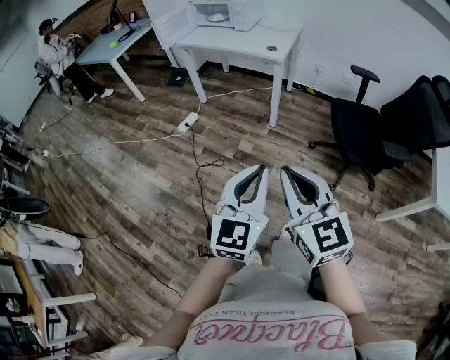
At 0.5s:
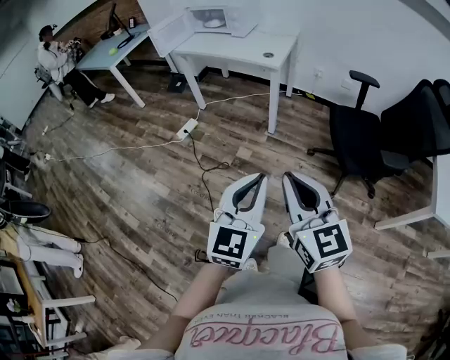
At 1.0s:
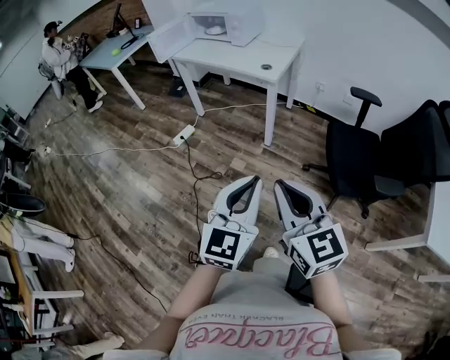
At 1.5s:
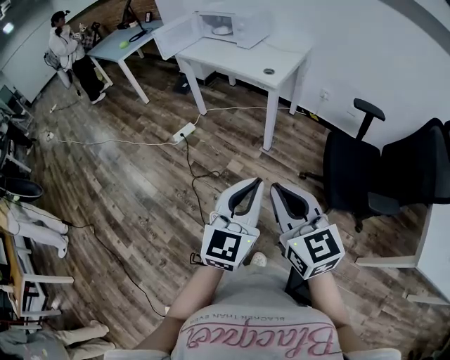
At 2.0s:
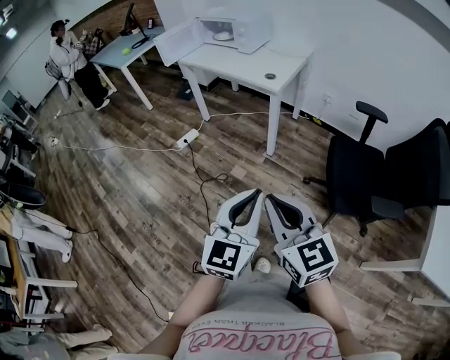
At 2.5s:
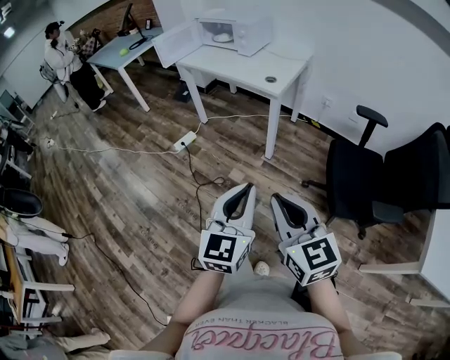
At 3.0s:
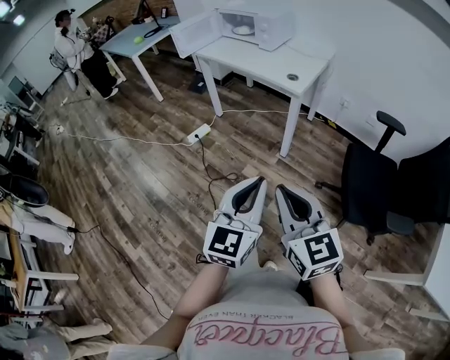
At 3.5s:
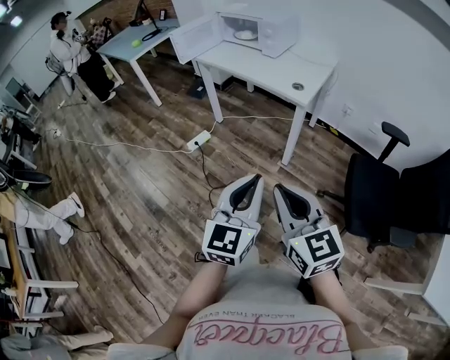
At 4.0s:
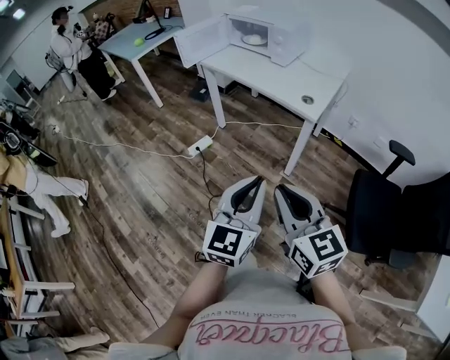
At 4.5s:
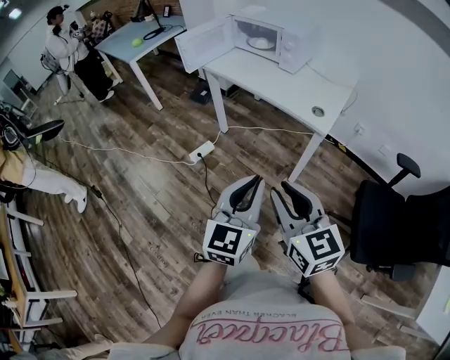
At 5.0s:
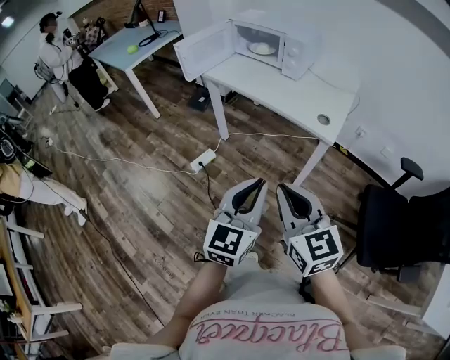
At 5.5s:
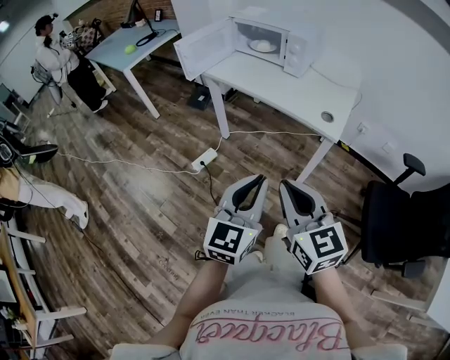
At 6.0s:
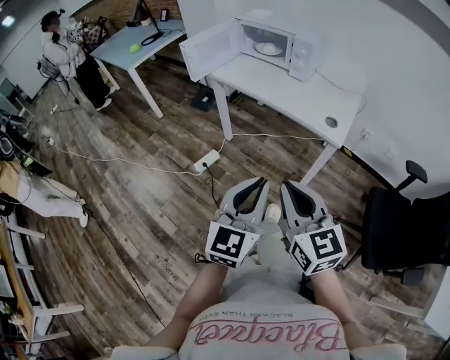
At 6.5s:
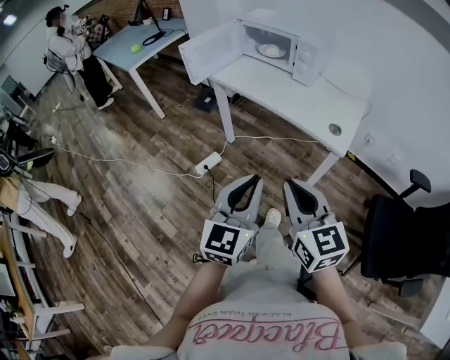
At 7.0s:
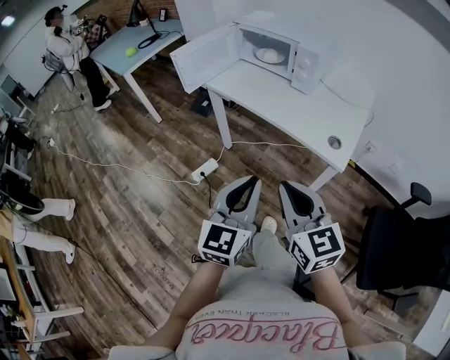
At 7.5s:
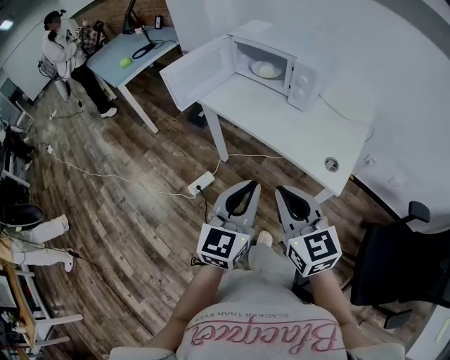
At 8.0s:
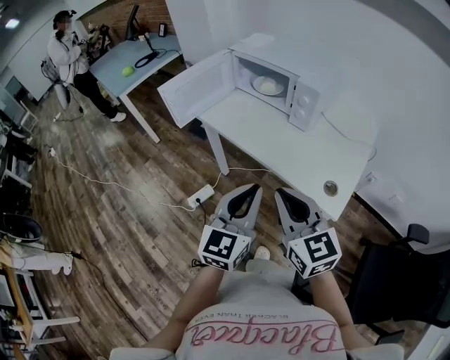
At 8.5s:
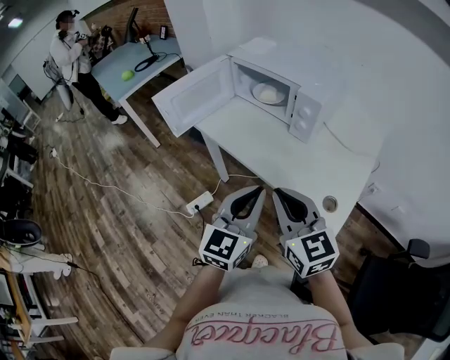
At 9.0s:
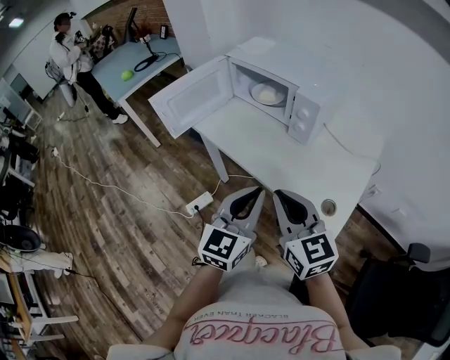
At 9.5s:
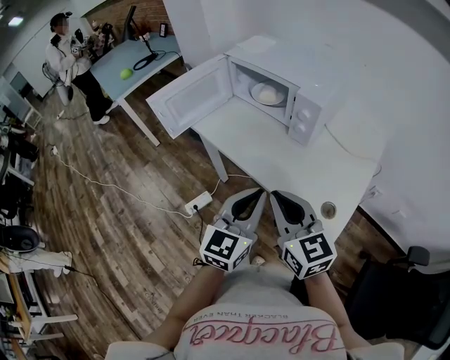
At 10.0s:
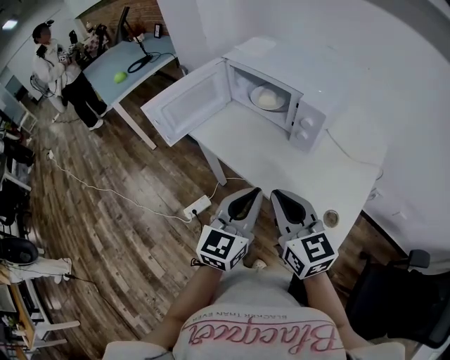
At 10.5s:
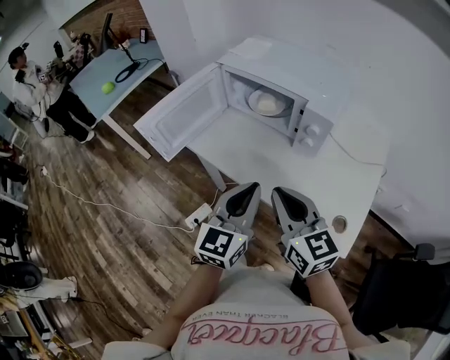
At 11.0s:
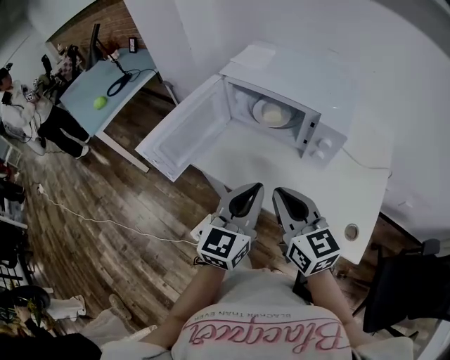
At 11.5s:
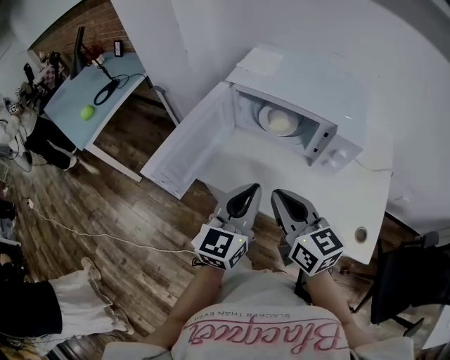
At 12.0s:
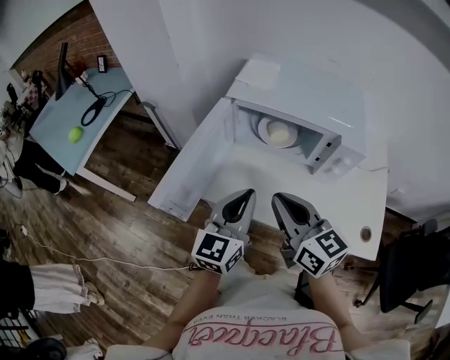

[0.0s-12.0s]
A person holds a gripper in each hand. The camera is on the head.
0.0s to 2.0s: Both grippers travel together to the right and forward, approximately 15 cm.
2.0s to 4.0s: The two grippers go about 25 cm forward and to the left.
4.0s to 6.0s: The two grippers go about 20 cm forward and to the left. The right gripper opens, then closes again.
6.0s to 8.0s: Both grippers move forward, some 25 cm.
8.0s to 10.0s: Both grippers move forward, approximately 15 cm.
10.0s to 12.0s: The two grippers go about 25 cm forward and to the left.

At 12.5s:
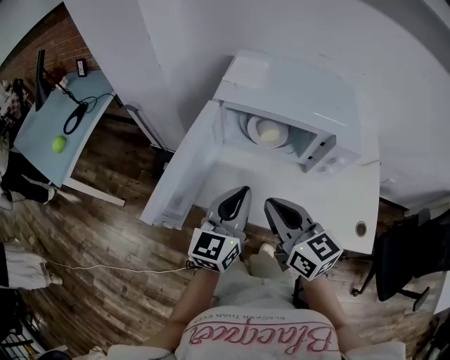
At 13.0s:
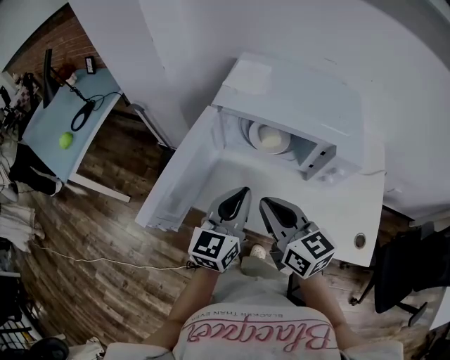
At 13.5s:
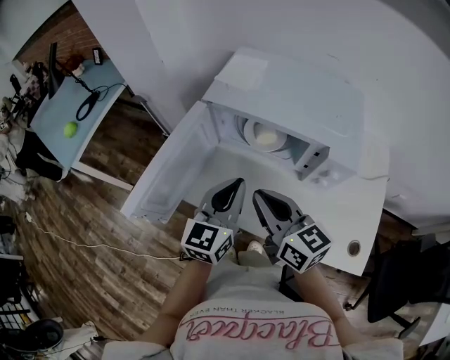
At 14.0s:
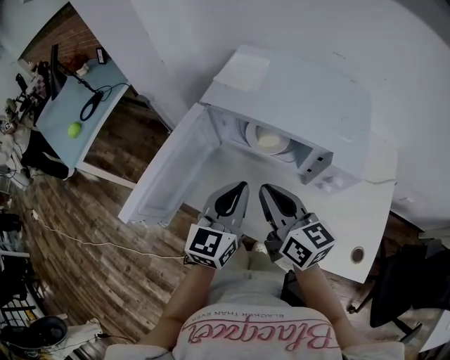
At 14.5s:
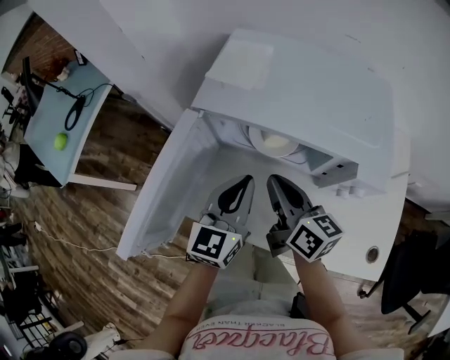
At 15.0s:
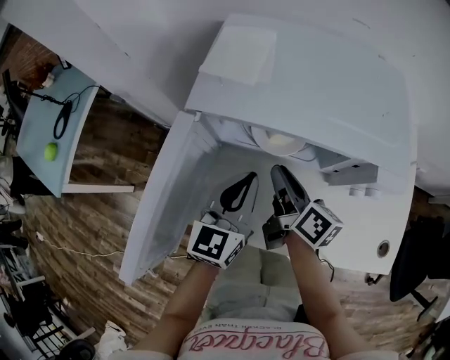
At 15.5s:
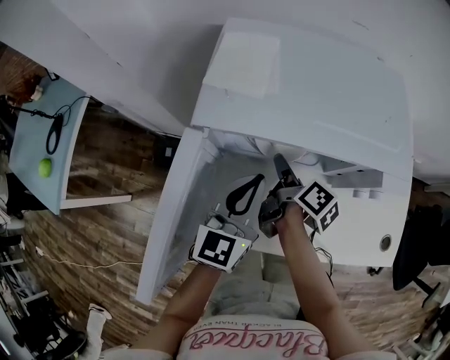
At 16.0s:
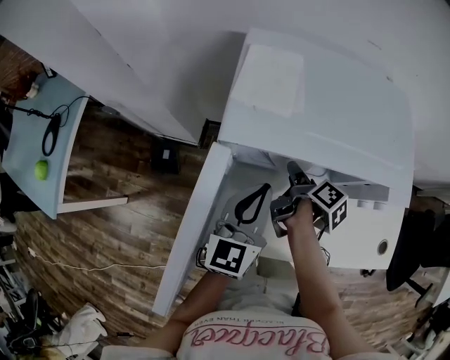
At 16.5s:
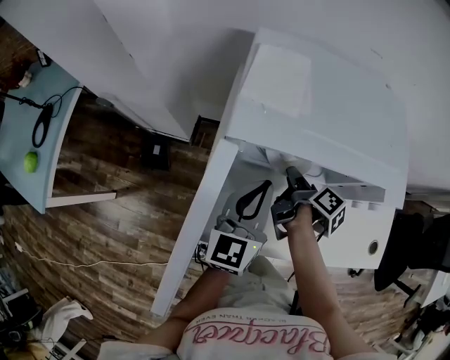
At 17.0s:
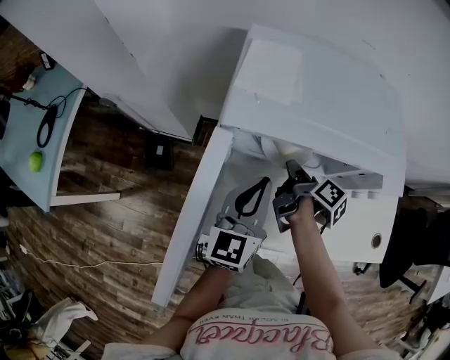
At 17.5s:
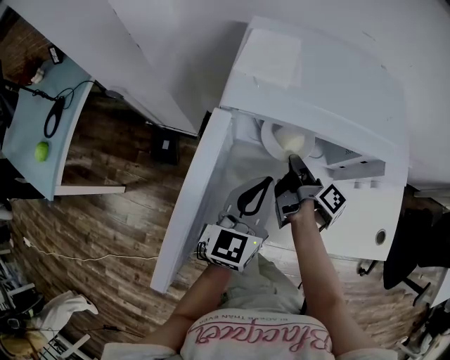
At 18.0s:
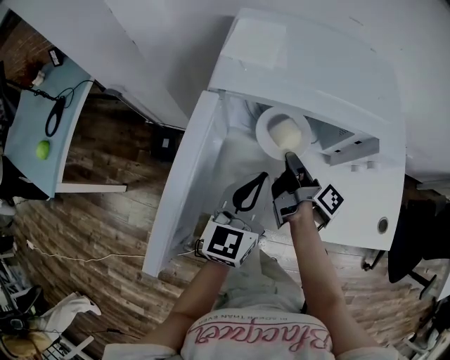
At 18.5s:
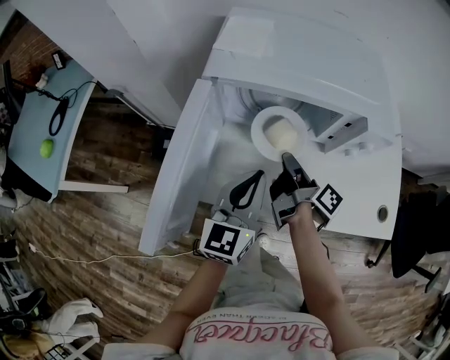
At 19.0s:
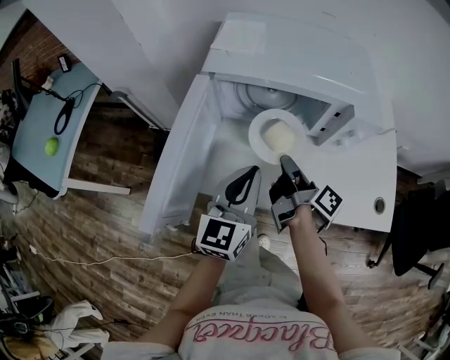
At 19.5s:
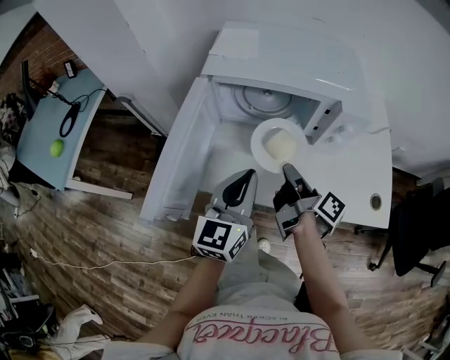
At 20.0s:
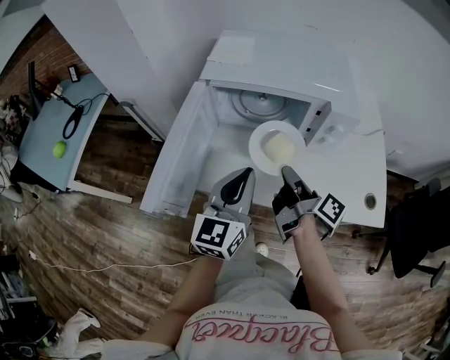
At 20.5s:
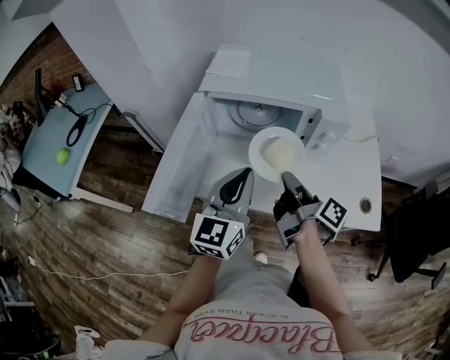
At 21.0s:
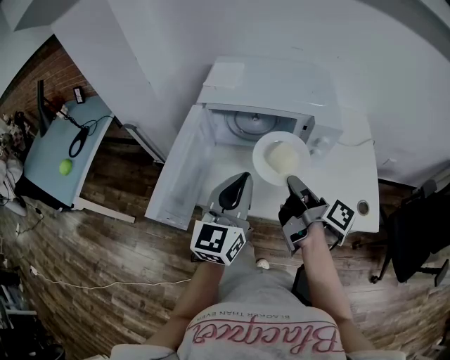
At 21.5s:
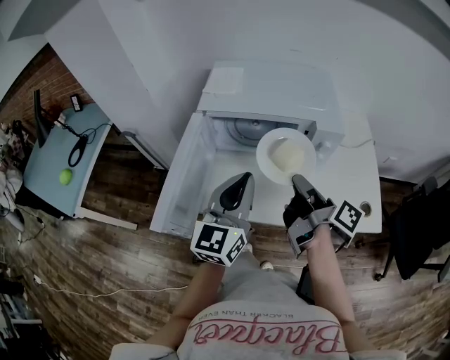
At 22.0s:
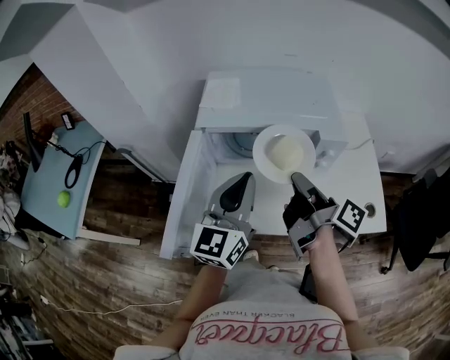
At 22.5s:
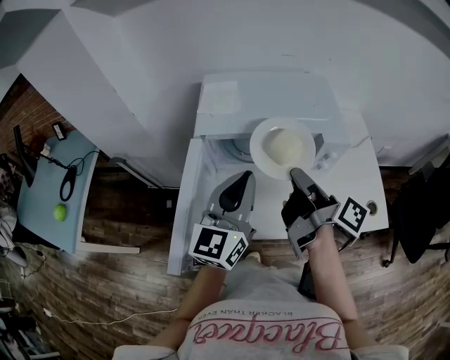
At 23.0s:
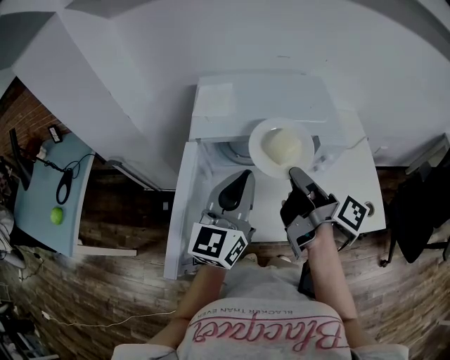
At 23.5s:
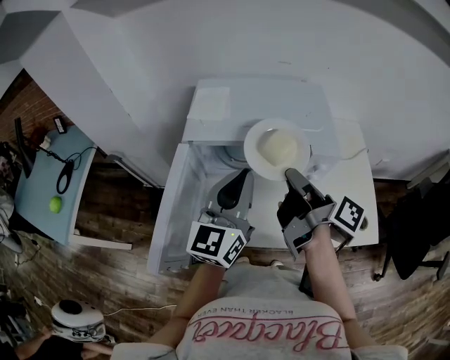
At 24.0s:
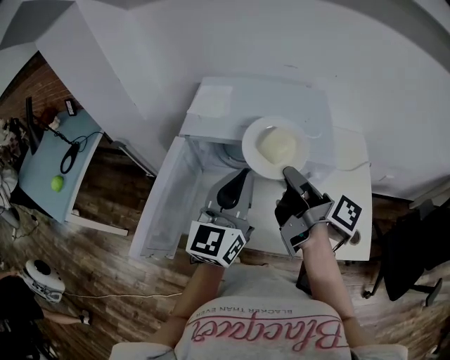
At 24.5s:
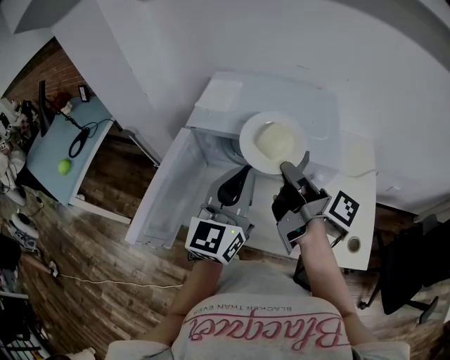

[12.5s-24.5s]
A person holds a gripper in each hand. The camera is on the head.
12.5s to 14.5s: The left gripper travels forward by roughly 10 cm. The right gripper is displaced forward, downward and to the right by about 15 cm, and turns by about 20 degrees.
14.5s to 16.5s: The left gripper ends up some 5 cm from where it was. Meanwhile the right gripper is displaced downward and forward by some 15 cm, swivels some 60 degrees, and opens up.
16.5s to 18.5s: Both grippers move backward, about 10 cm. The right gripper changes its angle by some 30 degrees, and closes its fingers.
18.5s to 20.5s: The left gripper shifts approximately 10 cm upward and backward. Meanwhile the right gripper goes about 15 cm backward, upward and to the right.
20.5s to 22.5s: The left gripper shifts roughly 10 cm forward and upward; the right gripper moves upward and forward, about 10 cm.
22.5s to 24.5s: The right gripper shifts by roughly 5 cm. The left gripper travels to the right by some 5 cm.

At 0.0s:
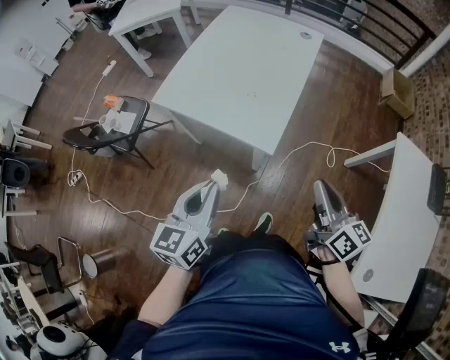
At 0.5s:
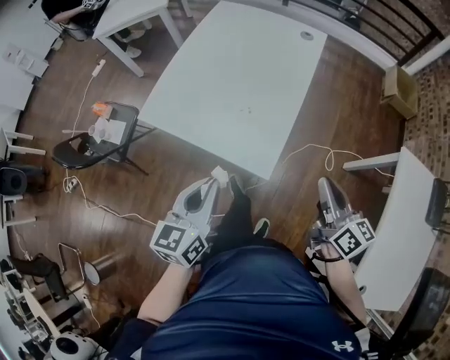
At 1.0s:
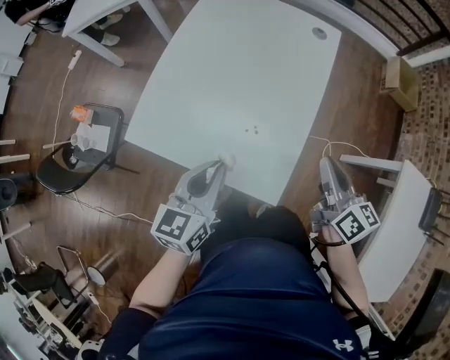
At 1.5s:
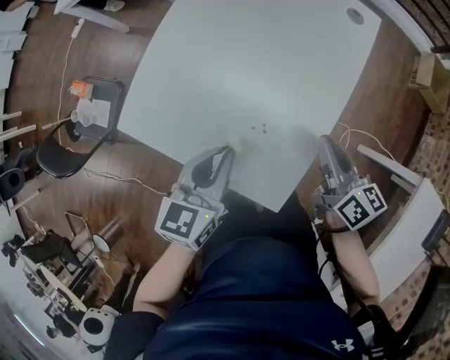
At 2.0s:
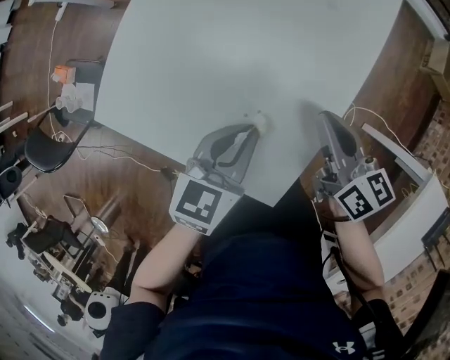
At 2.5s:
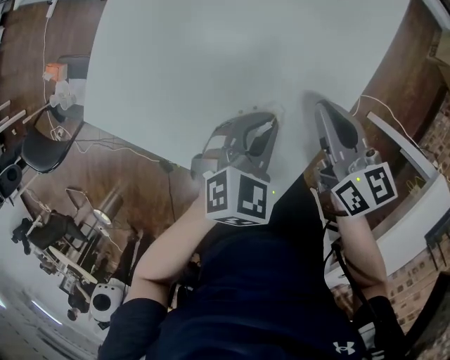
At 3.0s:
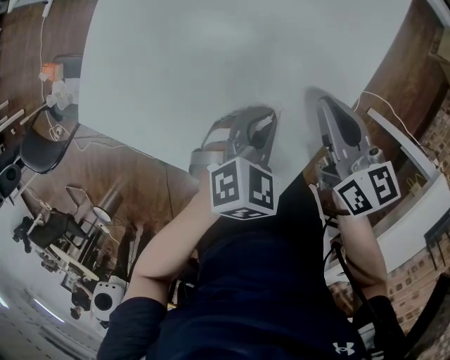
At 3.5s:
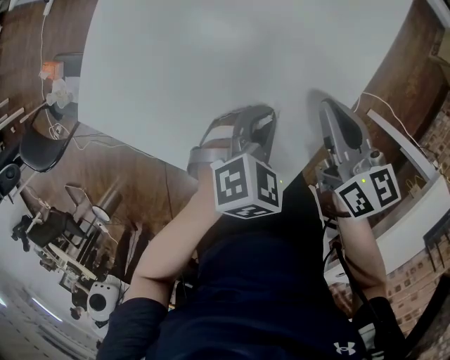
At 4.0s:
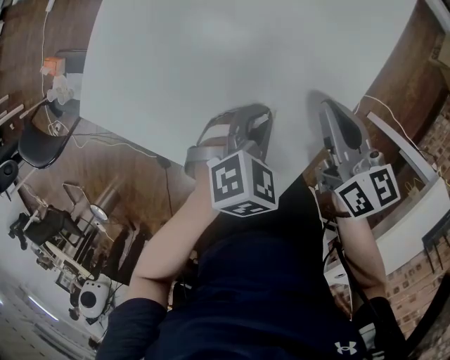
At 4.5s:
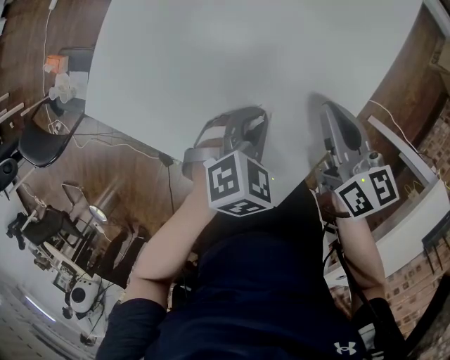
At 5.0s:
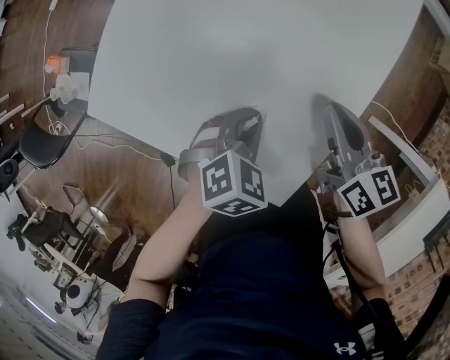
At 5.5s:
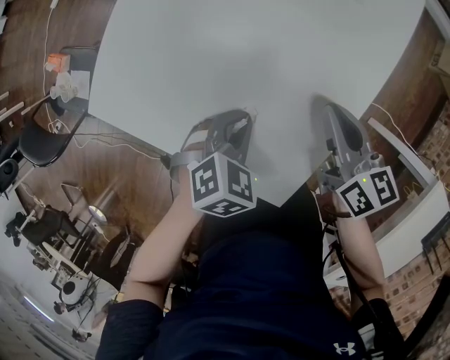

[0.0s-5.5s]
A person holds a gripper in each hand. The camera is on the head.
0.0s to 2.0s: Both grippers move forward and downward, approximately 40 cm. The left gripper rotates approximately 20 degrees; the right gripper turns by approximately 20 degrees.
2.0s to 3.5s: The left gripper moves downward and to the right, some 10 cm, and swivels roughly 40 degrees.
3.5s to 5.5s: The left gripper goes approximately 5 cm to the left.
